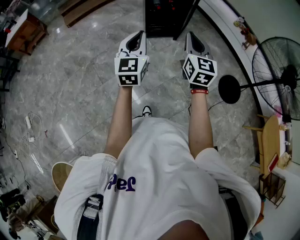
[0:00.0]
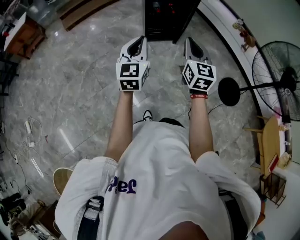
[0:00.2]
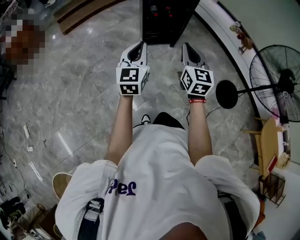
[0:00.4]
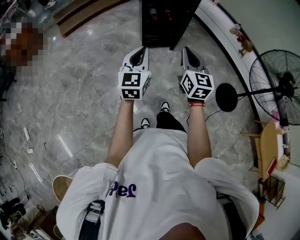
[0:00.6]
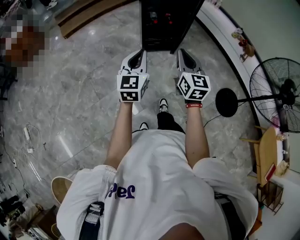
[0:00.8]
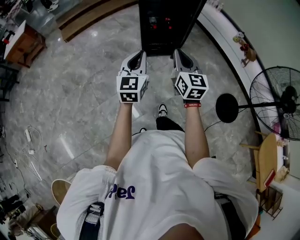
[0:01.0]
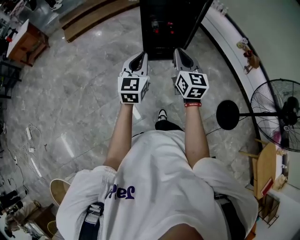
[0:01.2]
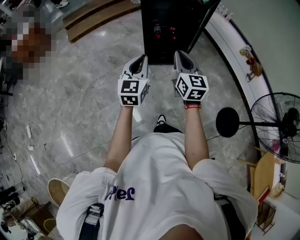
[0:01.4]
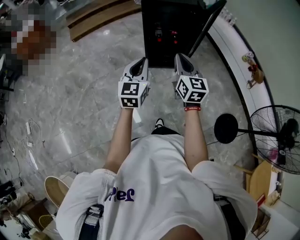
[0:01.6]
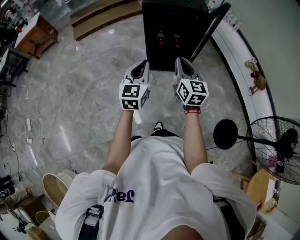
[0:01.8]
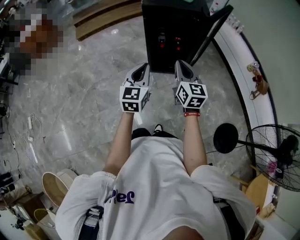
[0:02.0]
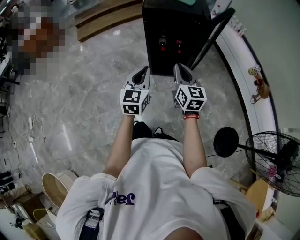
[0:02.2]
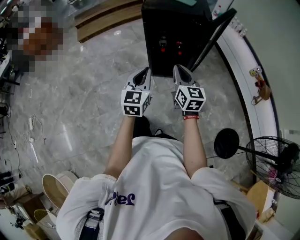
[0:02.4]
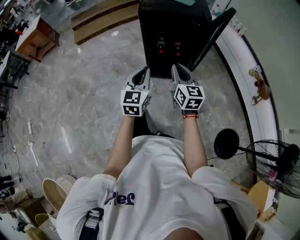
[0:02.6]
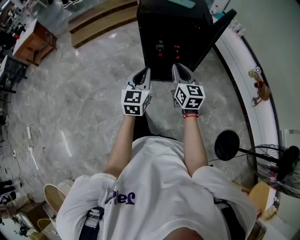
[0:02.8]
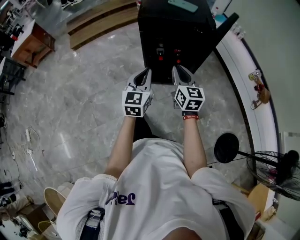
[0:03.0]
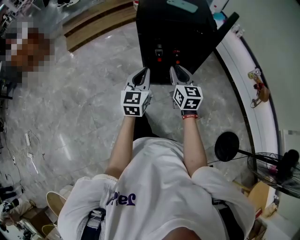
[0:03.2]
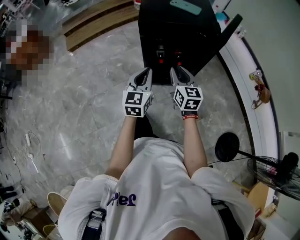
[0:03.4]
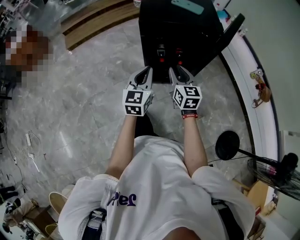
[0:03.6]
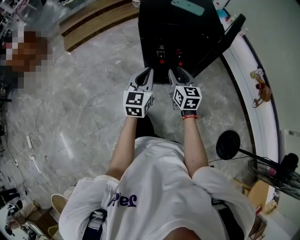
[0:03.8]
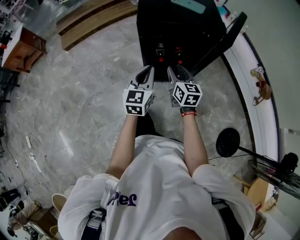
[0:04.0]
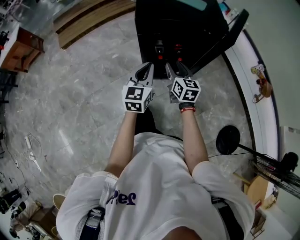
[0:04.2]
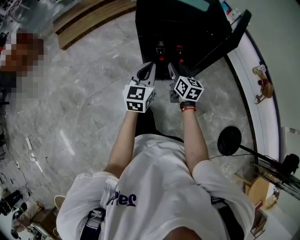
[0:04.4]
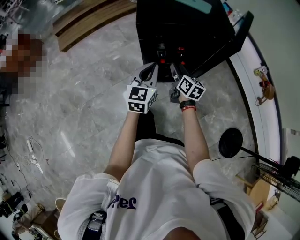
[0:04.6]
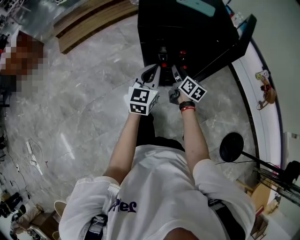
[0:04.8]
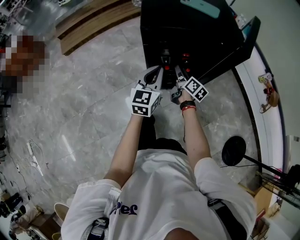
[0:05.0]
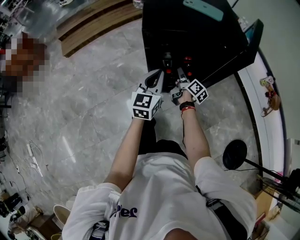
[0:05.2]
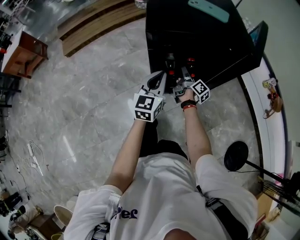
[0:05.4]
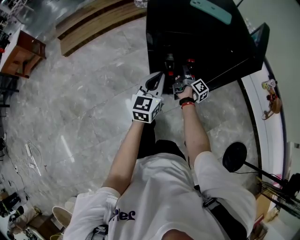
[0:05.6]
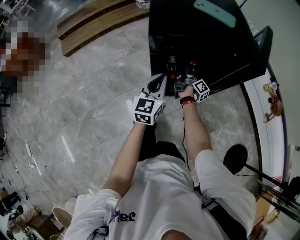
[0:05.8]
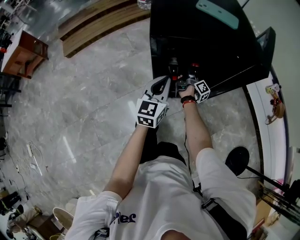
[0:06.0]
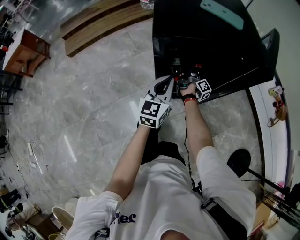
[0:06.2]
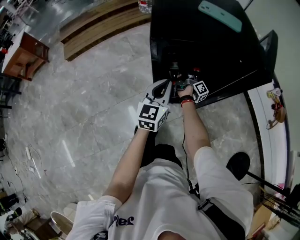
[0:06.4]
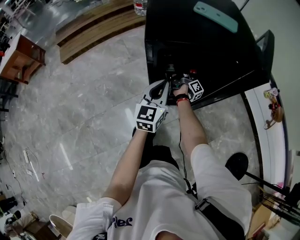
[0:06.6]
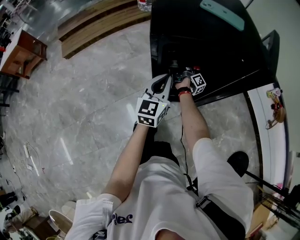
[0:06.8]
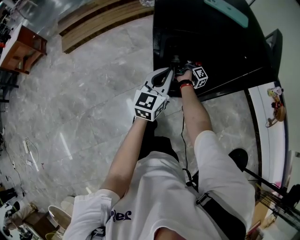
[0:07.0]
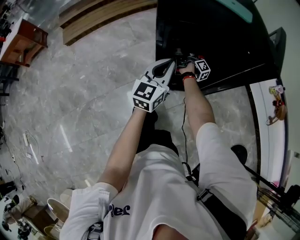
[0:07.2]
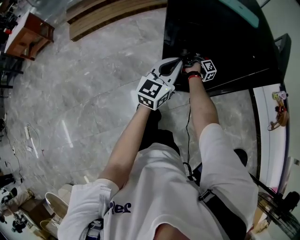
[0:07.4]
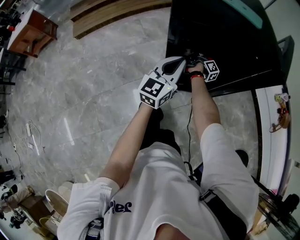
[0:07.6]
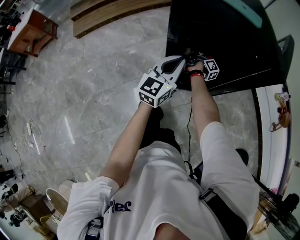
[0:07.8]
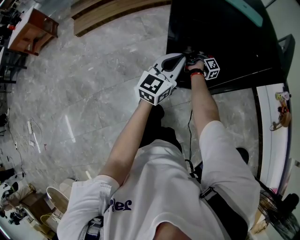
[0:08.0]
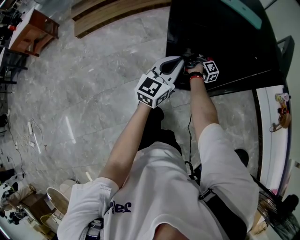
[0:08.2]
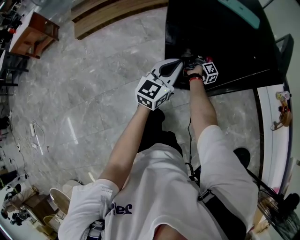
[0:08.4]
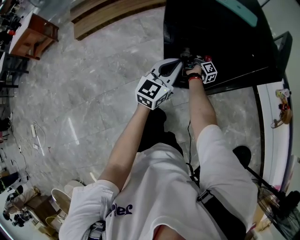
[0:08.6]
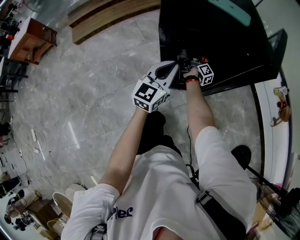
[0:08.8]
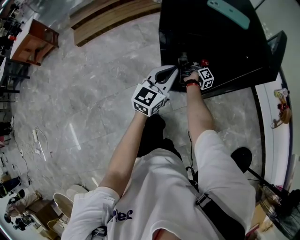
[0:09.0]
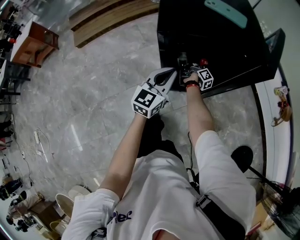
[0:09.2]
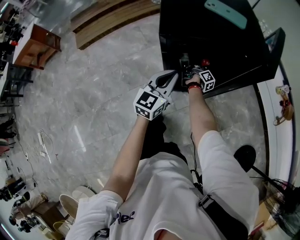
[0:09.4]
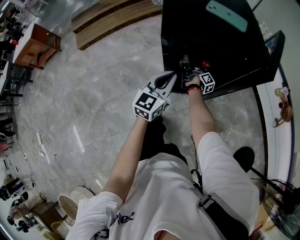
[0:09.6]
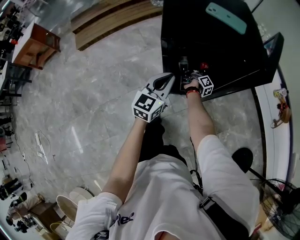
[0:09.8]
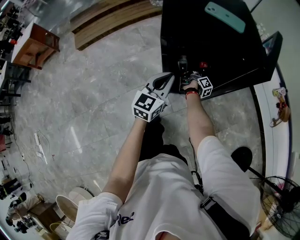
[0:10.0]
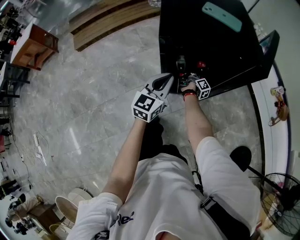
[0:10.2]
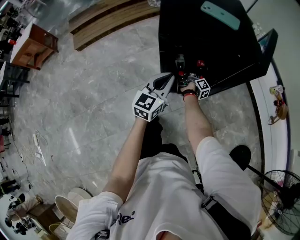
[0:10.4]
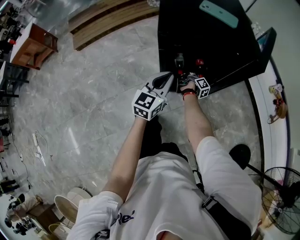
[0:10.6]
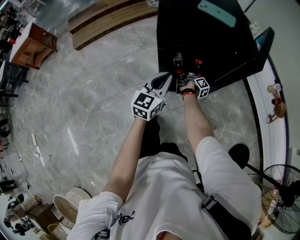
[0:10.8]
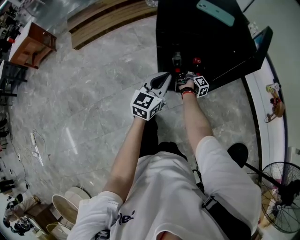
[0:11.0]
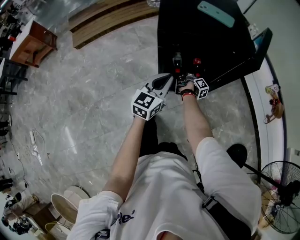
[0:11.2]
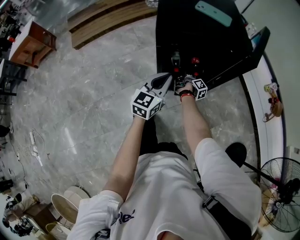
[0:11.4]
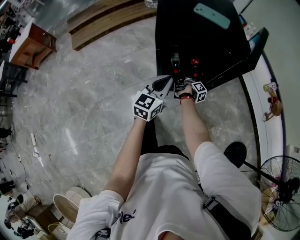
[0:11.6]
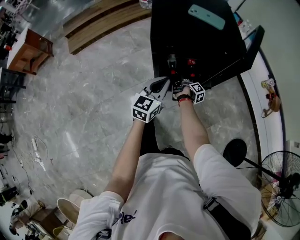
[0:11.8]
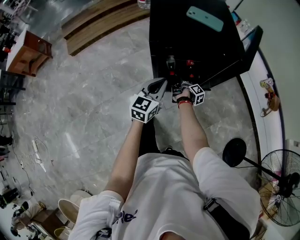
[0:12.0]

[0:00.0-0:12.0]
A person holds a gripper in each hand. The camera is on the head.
0:00.0 to 0:01.6: The grippers both shift forward by about 30 cm.
0:01.6 to 0:03.0: The right gripper is displaced forward and downward by approximately 25 cm. Meanwhile the left gripper moves forward, some 20 cm.
0:03.0 to 0:04.4: Both grippers travel together forward and downward, some 20 cm. The right gripper opens up.
0:04.4 to 0:06.0: The left gripper travels forward and downward by approximately 15 cm. The right gripper goes about 30 cm downward and forward, and rolls clockwise, seen from behind, by roughly 70 degrees.
0:06.0 to 0:07.6: The right gripper travels forward by about 10 cm, and closes its fingers.
0:07.6 to 0:09.0: The grippers stay close to where they were, moving slightly.
0:09.0 to 0:10.4: The right gripper goes about 5 cm backward.
0:10.4 to 0:12.0: The right gripper moves backward, some 5 cm.

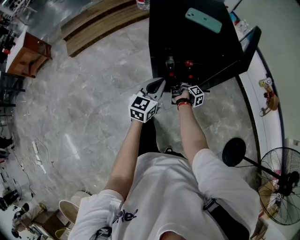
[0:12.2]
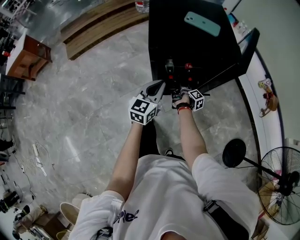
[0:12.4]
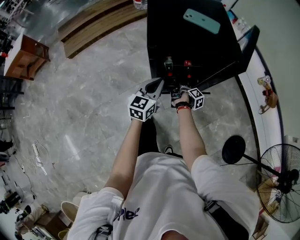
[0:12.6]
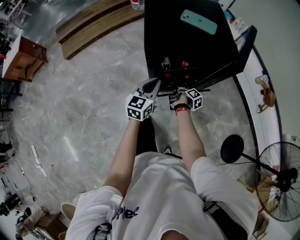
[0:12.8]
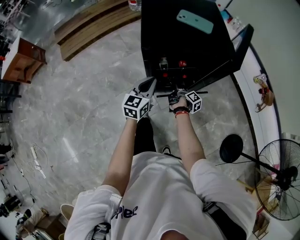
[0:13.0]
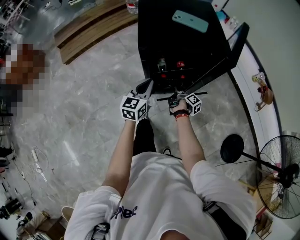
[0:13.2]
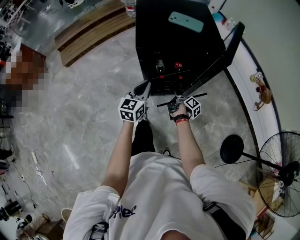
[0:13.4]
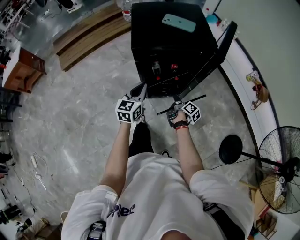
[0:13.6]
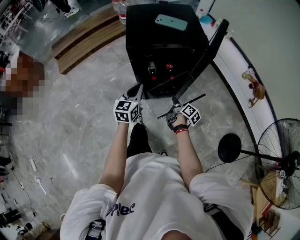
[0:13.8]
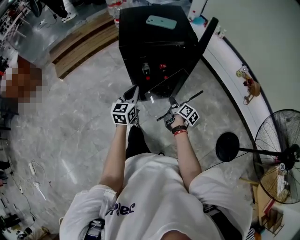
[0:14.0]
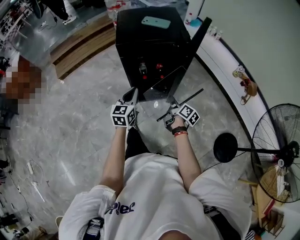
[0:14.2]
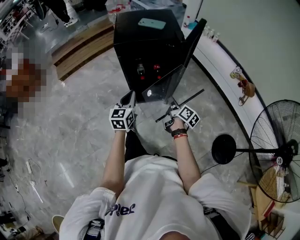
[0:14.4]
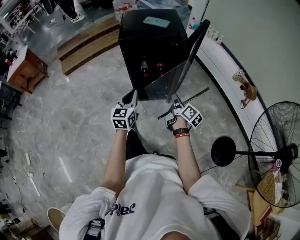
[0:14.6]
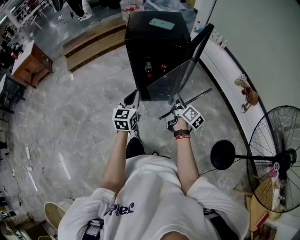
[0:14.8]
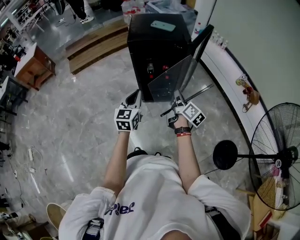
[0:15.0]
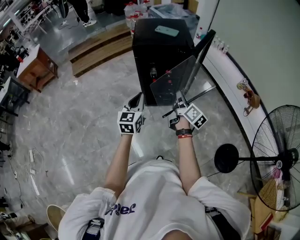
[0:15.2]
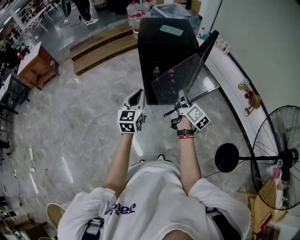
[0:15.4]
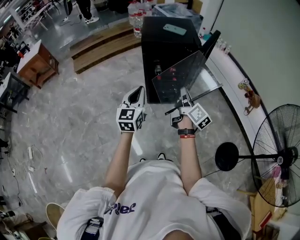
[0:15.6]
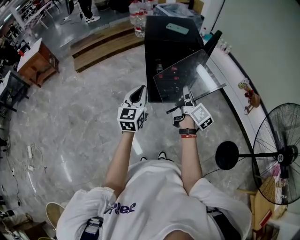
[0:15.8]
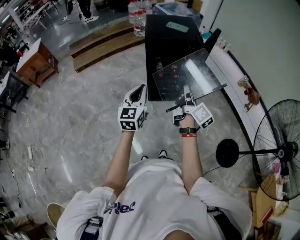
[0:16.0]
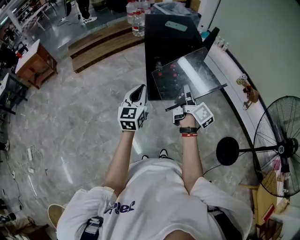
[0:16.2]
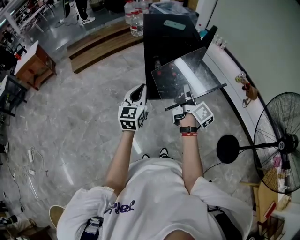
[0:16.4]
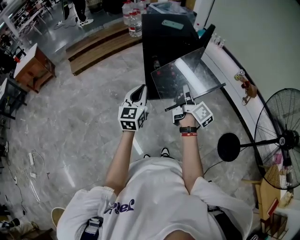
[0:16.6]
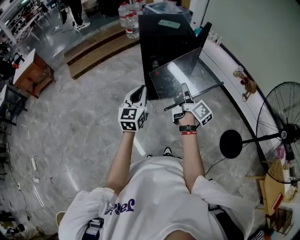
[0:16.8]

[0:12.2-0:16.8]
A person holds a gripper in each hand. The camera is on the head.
0:12.2 to 0:13.8: The left gripper is displaced backward by some 5 cm, while the right gripper shifts approximately 20 cm backward, upward and to the right, and changes its angle by roughly 20 degrees.
0:13.8 to 0:15.2: The left gripper goes approximately 25 cm backward and upward. The right gripper moves upward and backward, some 30 cm, and swivels approximately 30 degrees.
0:15.2 to 0:16.8: The two grippers go approximately 15 cm backward, to the left and upward.

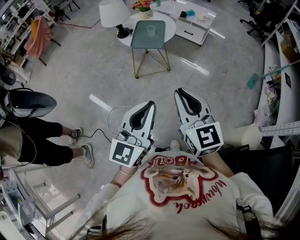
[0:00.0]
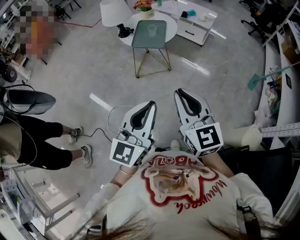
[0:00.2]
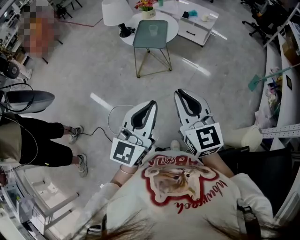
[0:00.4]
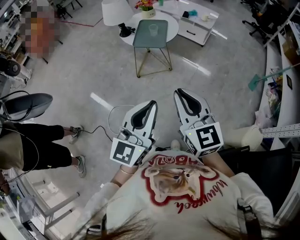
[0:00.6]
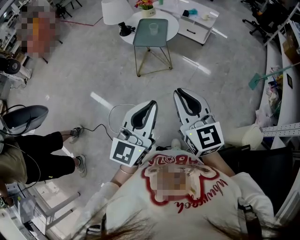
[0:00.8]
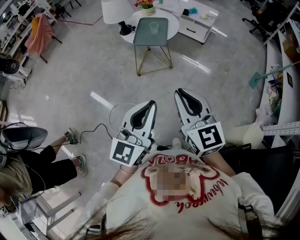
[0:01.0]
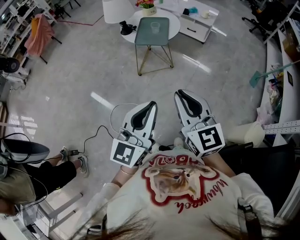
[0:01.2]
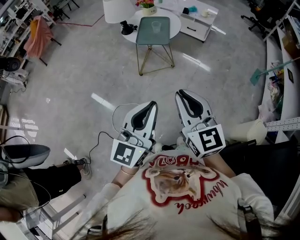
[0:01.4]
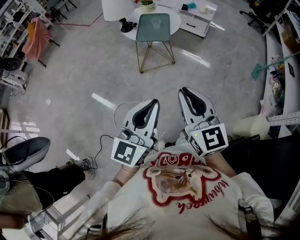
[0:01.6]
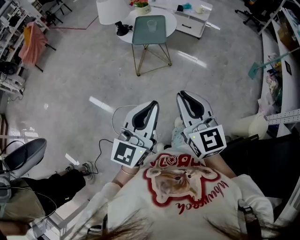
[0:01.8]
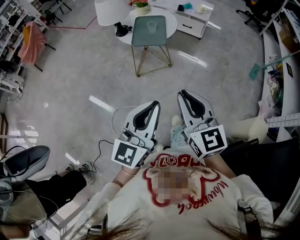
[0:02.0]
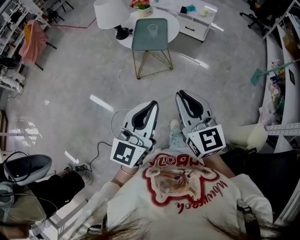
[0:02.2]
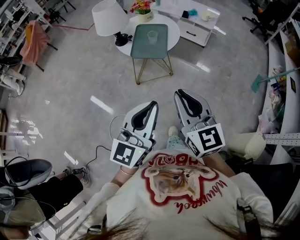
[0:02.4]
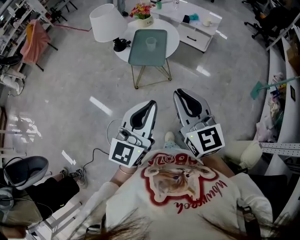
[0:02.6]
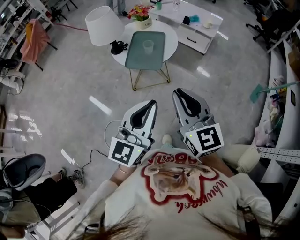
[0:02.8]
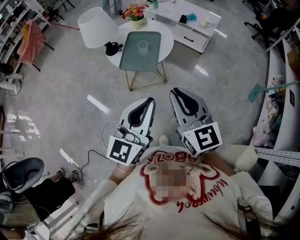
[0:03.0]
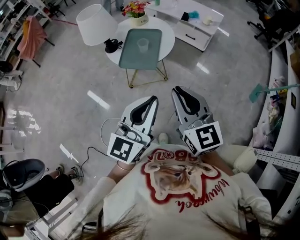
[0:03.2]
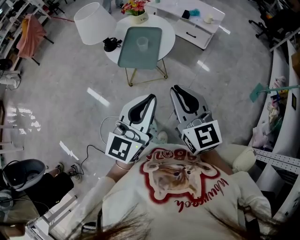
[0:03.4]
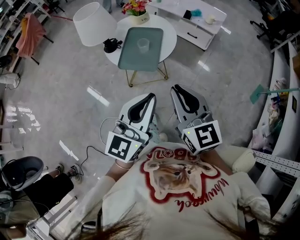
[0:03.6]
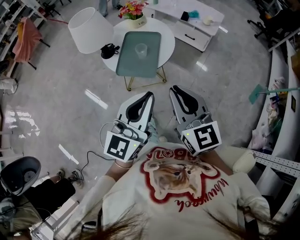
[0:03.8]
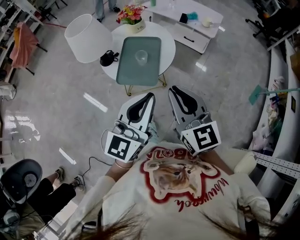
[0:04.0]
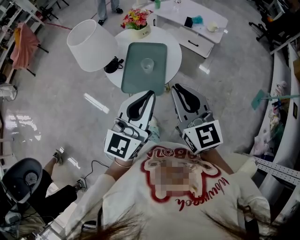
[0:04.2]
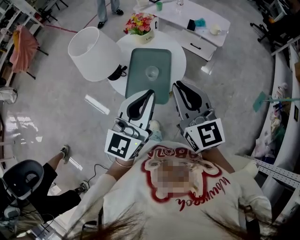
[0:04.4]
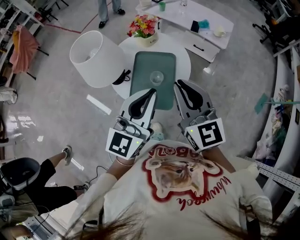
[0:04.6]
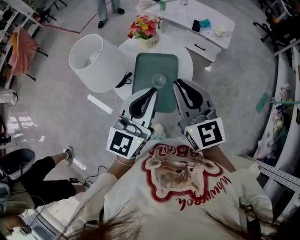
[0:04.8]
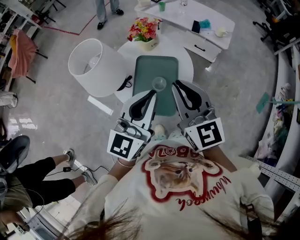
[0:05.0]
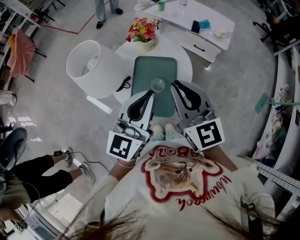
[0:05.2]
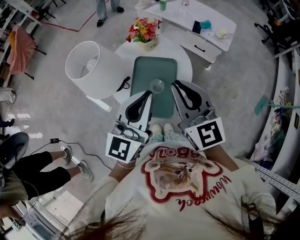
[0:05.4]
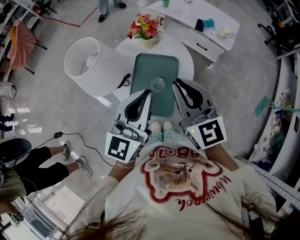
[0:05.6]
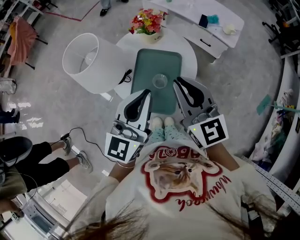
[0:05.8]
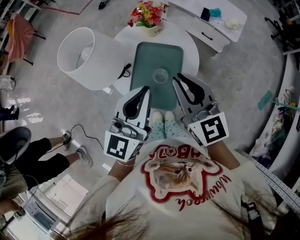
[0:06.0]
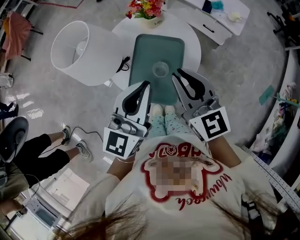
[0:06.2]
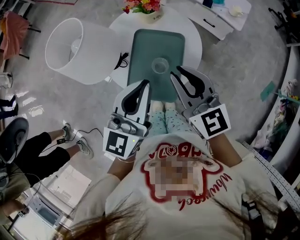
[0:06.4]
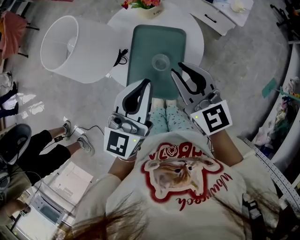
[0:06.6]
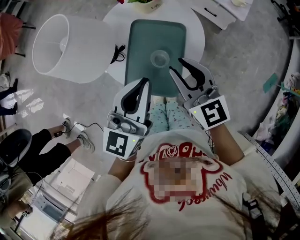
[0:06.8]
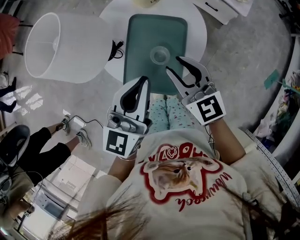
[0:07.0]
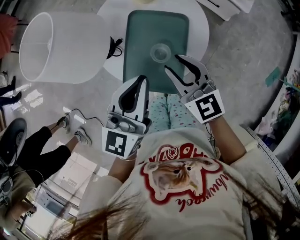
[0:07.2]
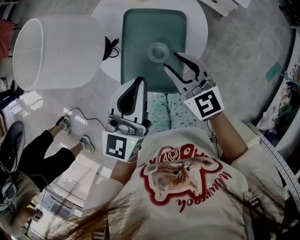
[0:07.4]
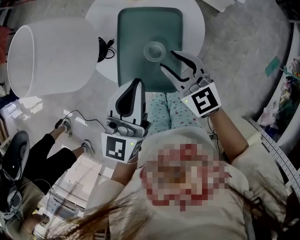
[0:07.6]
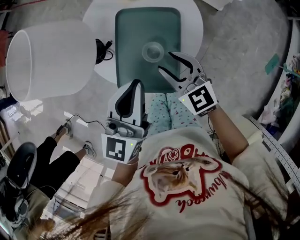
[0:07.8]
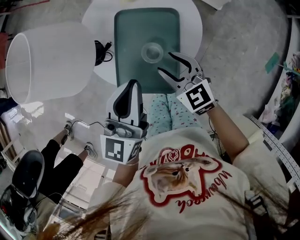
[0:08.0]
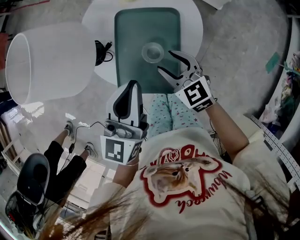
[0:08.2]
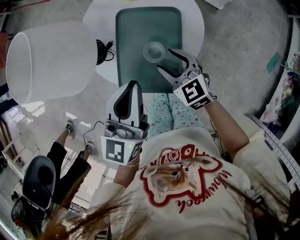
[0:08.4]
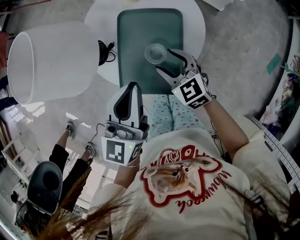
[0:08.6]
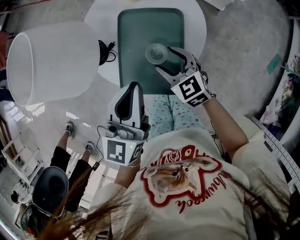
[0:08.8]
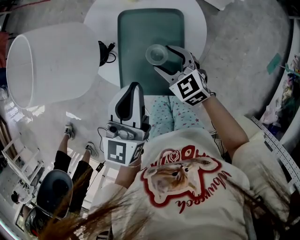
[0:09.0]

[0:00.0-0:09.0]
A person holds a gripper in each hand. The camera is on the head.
0:00.0 to 0:01.6: Both grippers move to the left, approximately 5 cm.
0:01.6 to 0:03.0: The two grippers go some 25 cm forward.
0:03.0 to 0:04.4: The grippers both shift forward by about 25 cm.
0:04.4 to 0:06.0: Both grippers travel together forward, about 10 cm.
0:06.0 to 0:07.6: The left gripper travels downward by some 10 cm. Meanwhile the right gripper heads downward, covering roughly 20 cm, and opens its fingers.
0:07.6 to 0:09.0: The right gripper is displaced downward by approximately 10 cm, and opens up.
